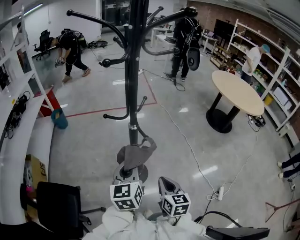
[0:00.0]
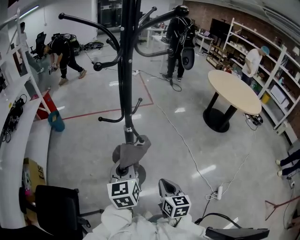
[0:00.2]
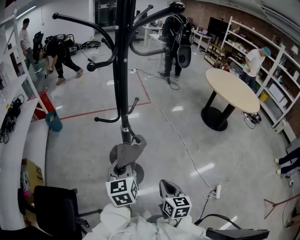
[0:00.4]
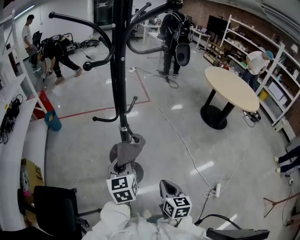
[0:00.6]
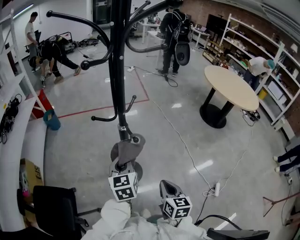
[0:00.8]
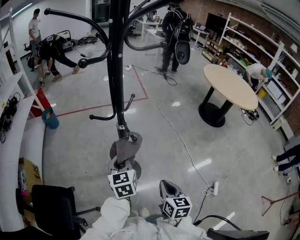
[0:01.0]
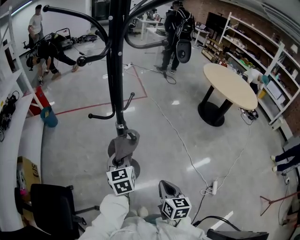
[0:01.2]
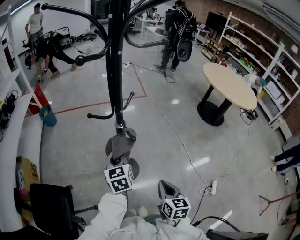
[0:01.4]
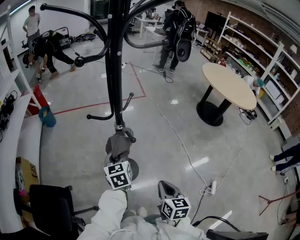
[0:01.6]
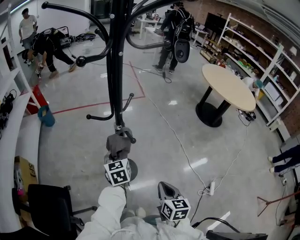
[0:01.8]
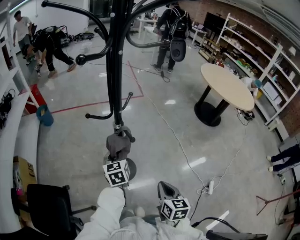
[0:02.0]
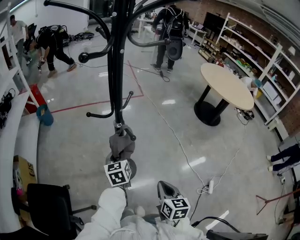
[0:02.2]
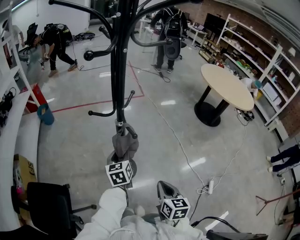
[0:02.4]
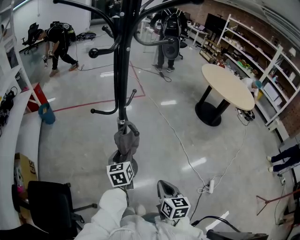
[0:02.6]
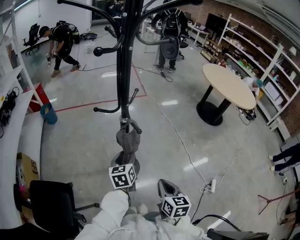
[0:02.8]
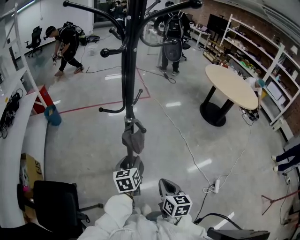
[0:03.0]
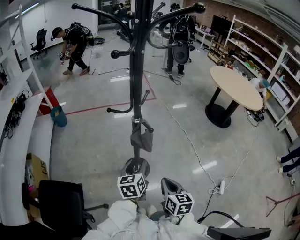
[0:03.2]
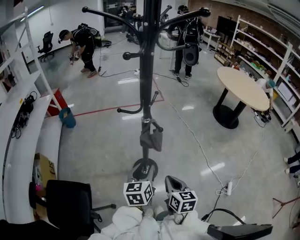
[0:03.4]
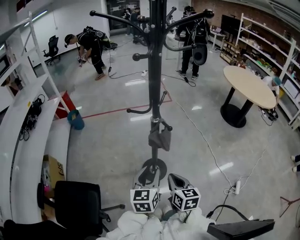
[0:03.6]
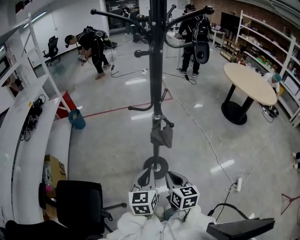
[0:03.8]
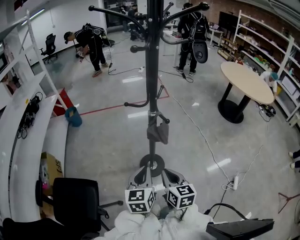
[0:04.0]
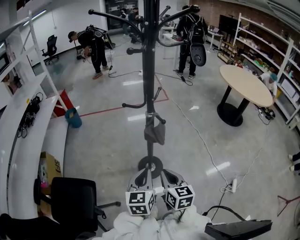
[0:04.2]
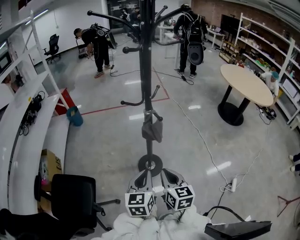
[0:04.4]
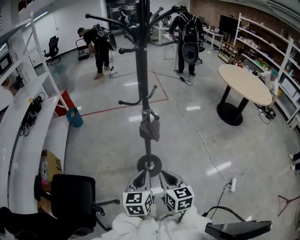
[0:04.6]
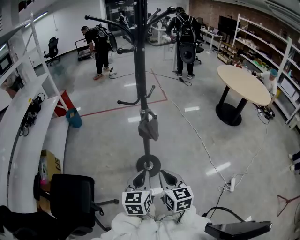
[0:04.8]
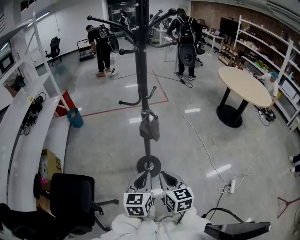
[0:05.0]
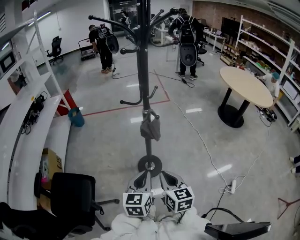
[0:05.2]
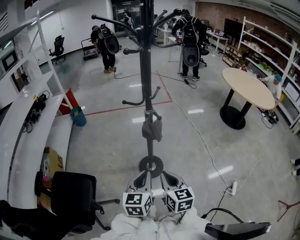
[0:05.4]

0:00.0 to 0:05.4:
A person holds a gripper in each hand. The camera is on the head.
0:00.0 to 0:01.4: The left gripper goes about 10 cm downward and forward; the right gripper ends up about 5 cm from where it was.
0:01.4 to 0:02.8: The left gripper travels downward by some 5 cm, and opens up.
0:02.8 to 0:04.0: The right gripper travels to the left by some 10 cm; the left gripper heads backward, upward and to the left, covering some 15 cm, and closes its fingers.
0:04.0 to 0:05.4: The left gripper heads backward, covering some 5 cm; the right gripper shifts by some 5 cm.

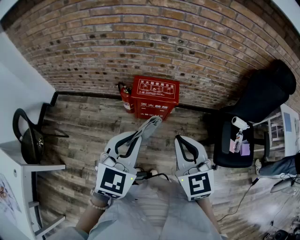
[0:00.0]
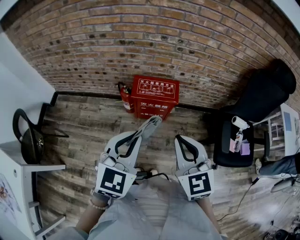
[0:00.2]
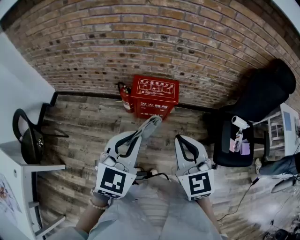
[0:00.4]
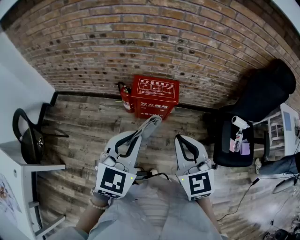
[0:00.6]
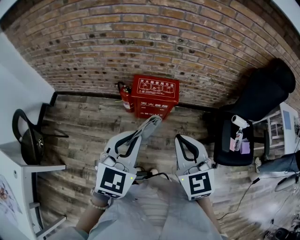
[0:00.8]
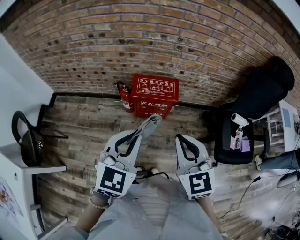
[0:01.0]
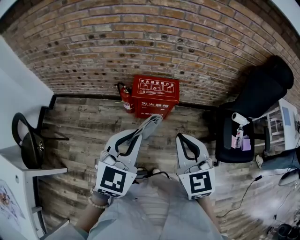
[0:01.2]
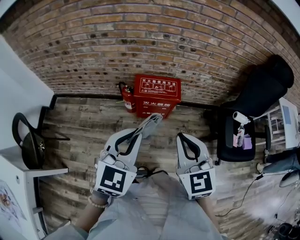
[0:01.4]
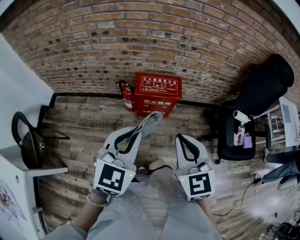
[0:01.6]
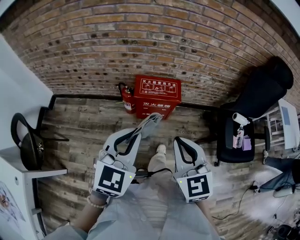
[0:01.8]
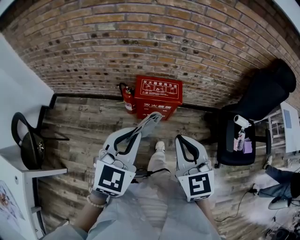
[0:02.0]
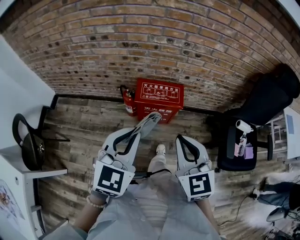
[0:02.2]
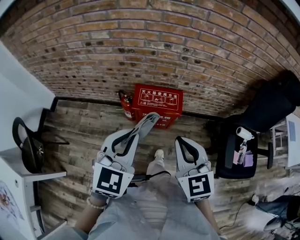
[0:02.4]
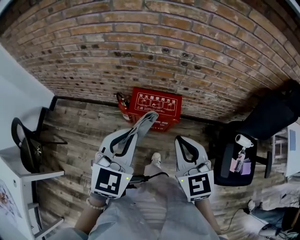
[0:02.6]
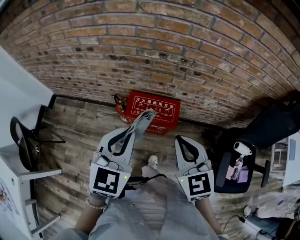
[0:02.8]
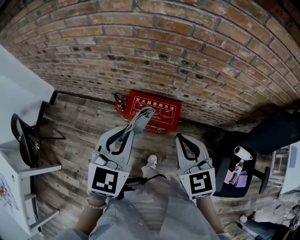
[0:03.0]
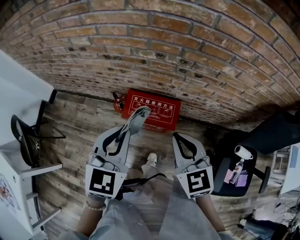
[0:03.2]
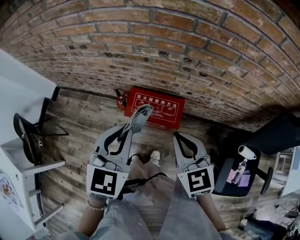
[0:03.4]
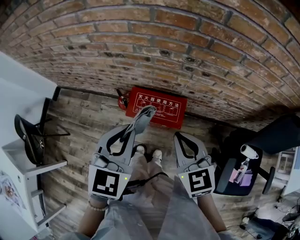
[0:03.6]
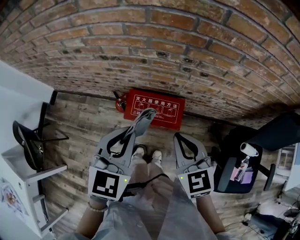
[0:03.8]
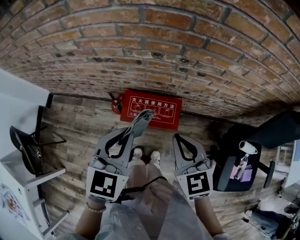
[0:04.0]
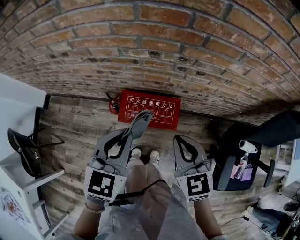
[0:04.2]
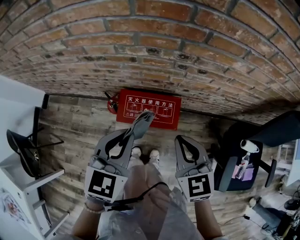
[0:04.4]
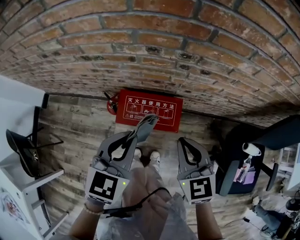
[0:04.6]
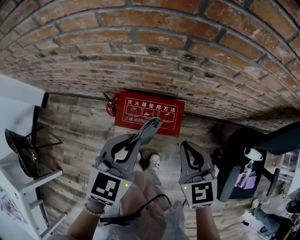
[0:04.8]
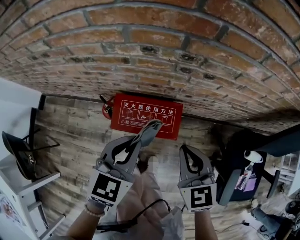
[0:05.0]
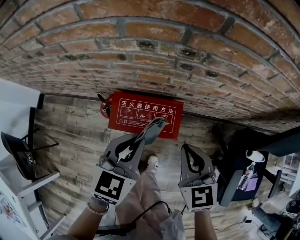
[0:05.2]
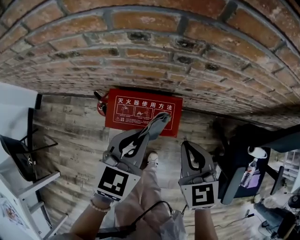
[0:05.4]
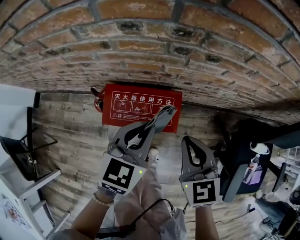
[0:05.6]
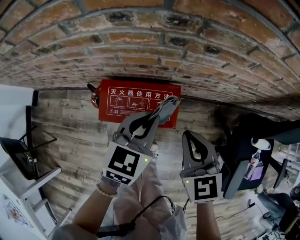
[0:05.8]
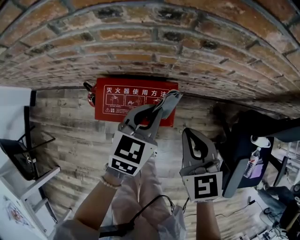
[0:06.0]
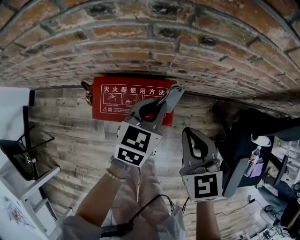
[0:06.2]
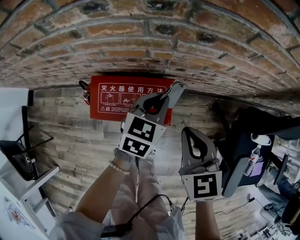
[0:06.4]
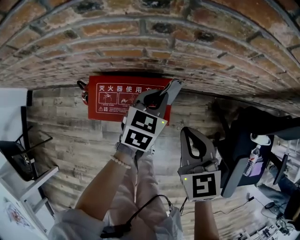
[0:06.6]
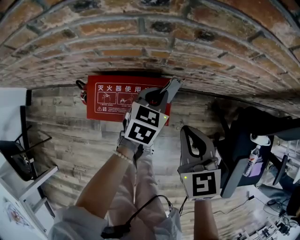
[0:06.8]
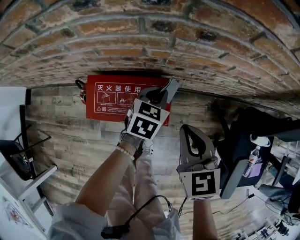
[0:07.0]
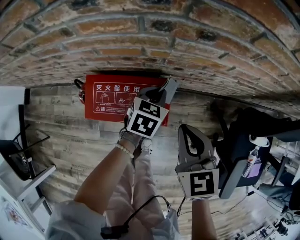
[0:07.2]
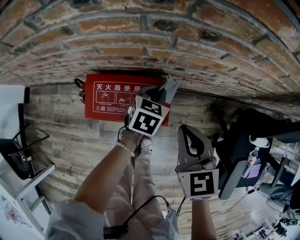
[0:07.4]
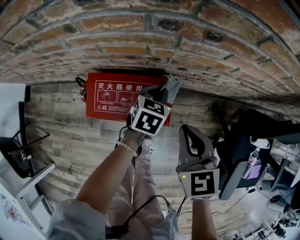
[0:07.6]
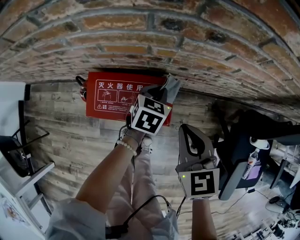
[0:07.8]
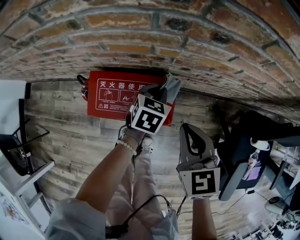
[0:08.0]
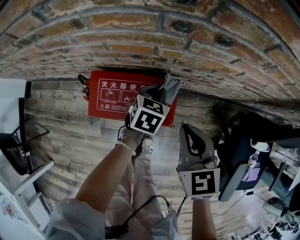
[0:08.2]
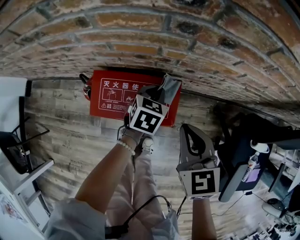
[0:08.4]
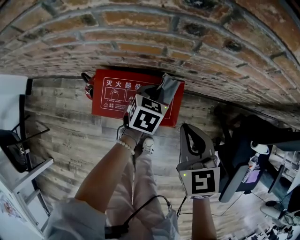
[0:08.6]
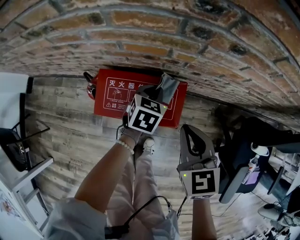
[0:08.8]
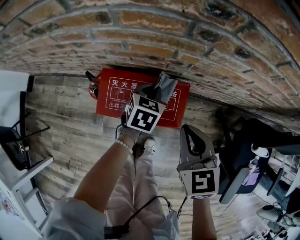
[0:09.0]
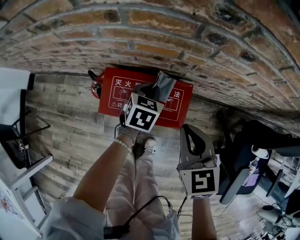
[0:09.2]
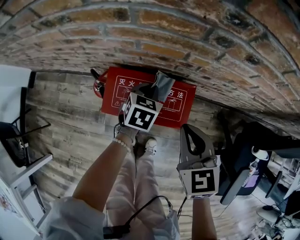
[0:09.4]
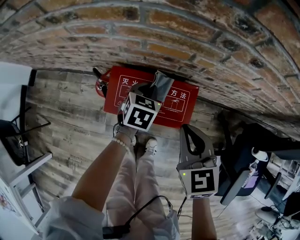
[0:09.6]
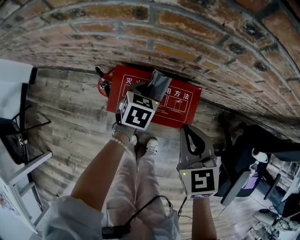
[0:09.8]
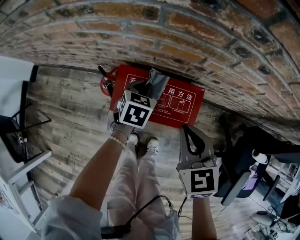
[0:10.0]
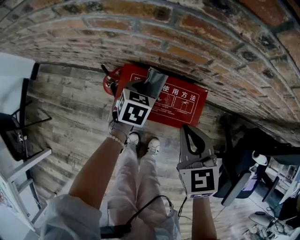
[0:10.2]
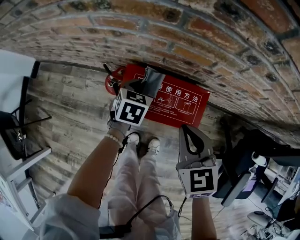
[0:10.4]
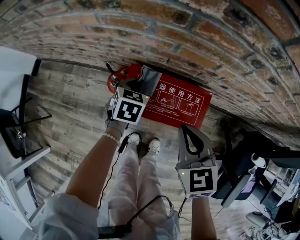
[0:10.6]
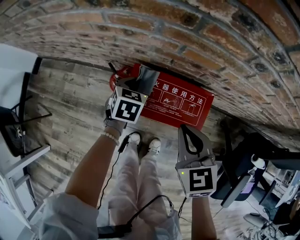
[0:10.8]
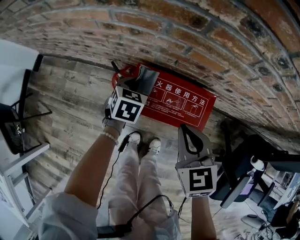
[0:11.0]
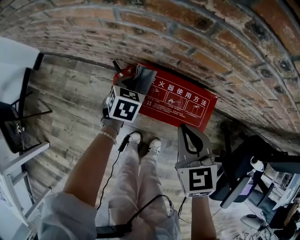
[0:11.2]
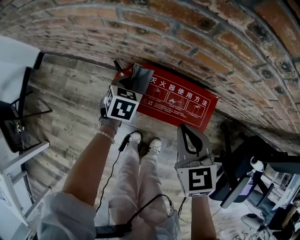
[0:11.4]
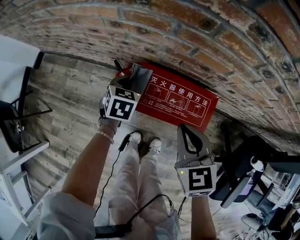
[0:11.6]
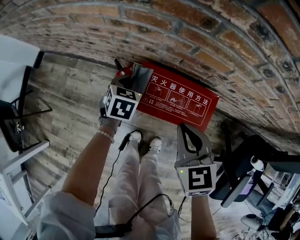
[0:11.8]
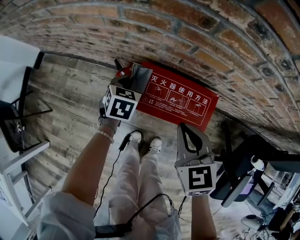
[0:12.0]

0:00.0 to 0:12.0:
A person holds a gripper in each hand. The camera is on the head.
0:00.0 to 0:01.6: The grippers stay close to where they were, moving slightly.
0:01.6 to 0:03.0: The two grippers go some 25 cm forward.
0:03.0 to 0:04.4: The grippers both shift downward and forward by roughly 10 cm.
0:04.4 to 0:06.0: The right gripper goes about 15 cm downward and to the right. The left gripper goes about 25 cm downward, to the right and forward.
0:06.0 to 0:07.6: The left gripper goes about 15 cm downward and forward.
0:07.6 to 0:09.0: The left gripper heads to the left, covering some 10 cm.
0:09.0 to 0:10.4: The left gripper heads to the left, covering approximately 15 cm. Meanwhile the right gripper goes roughly 10 cm to the left.
0:10.4 to 0:12.0: The left gripper heads to the left, covering some 10 cm. Meanwhile the right gripper shifts approximately 5 cm to the left.

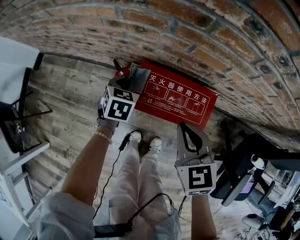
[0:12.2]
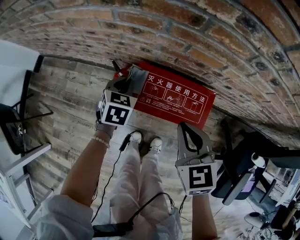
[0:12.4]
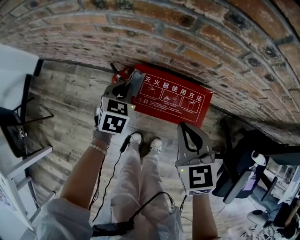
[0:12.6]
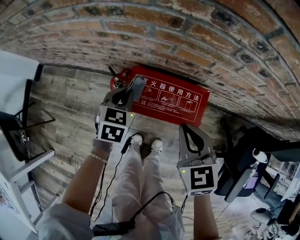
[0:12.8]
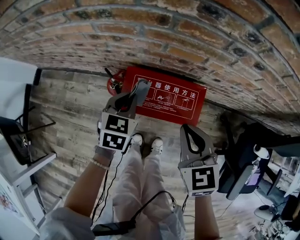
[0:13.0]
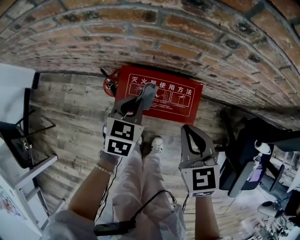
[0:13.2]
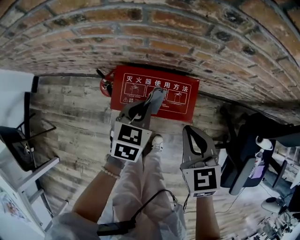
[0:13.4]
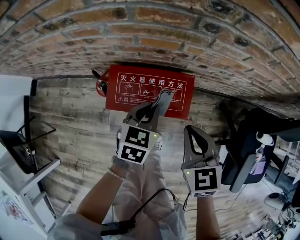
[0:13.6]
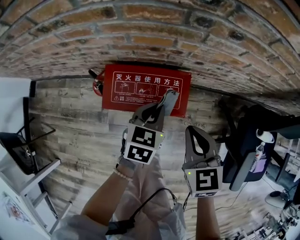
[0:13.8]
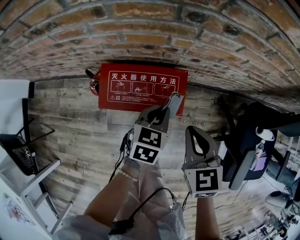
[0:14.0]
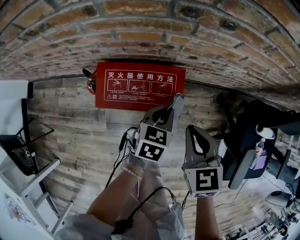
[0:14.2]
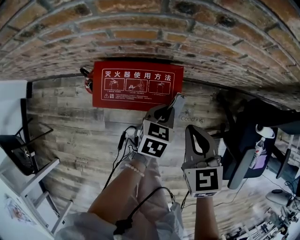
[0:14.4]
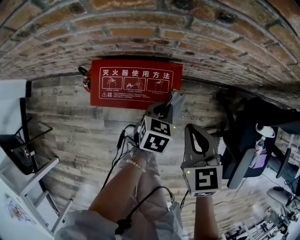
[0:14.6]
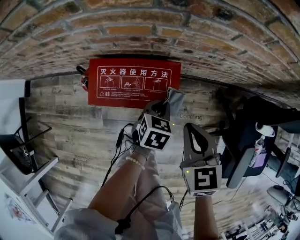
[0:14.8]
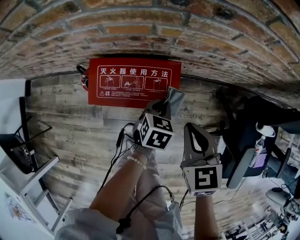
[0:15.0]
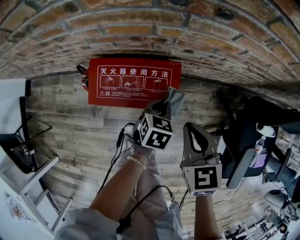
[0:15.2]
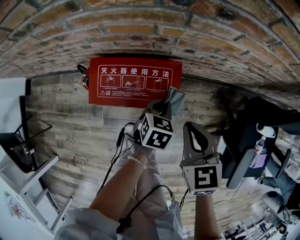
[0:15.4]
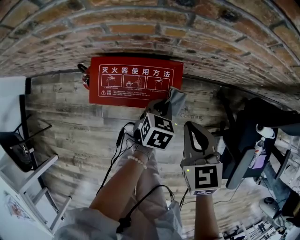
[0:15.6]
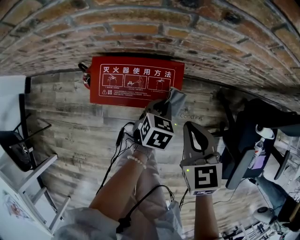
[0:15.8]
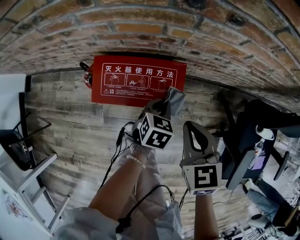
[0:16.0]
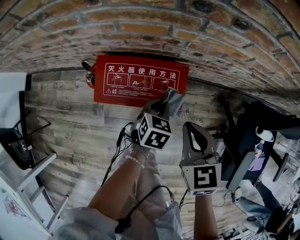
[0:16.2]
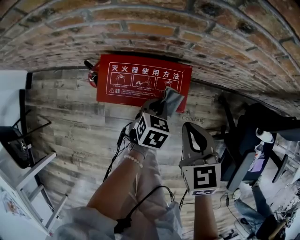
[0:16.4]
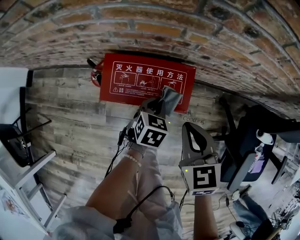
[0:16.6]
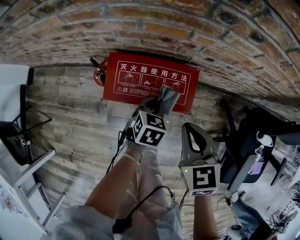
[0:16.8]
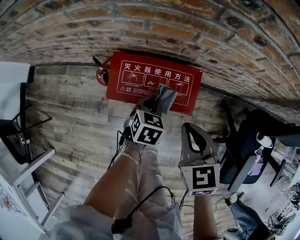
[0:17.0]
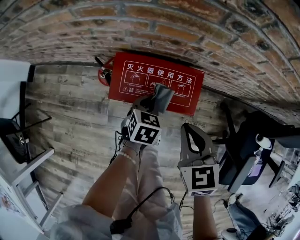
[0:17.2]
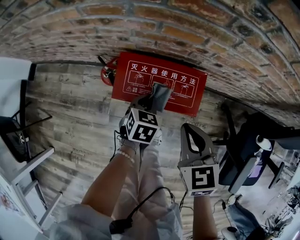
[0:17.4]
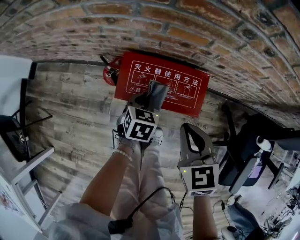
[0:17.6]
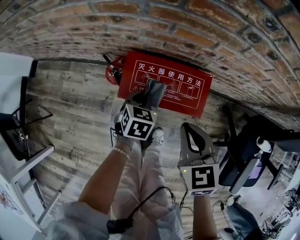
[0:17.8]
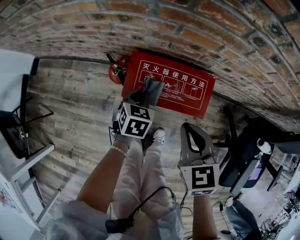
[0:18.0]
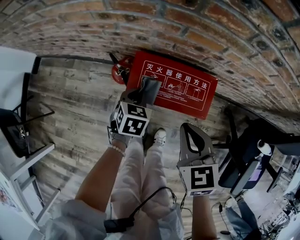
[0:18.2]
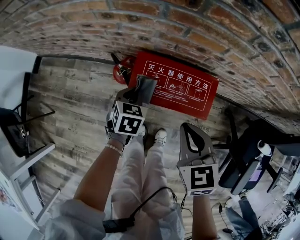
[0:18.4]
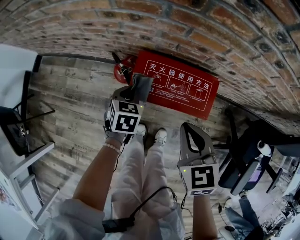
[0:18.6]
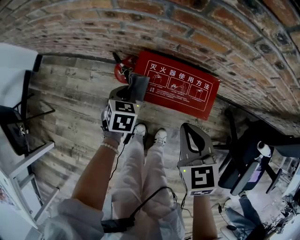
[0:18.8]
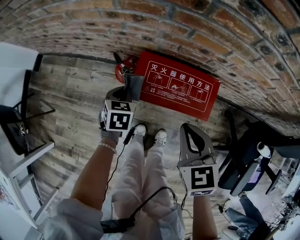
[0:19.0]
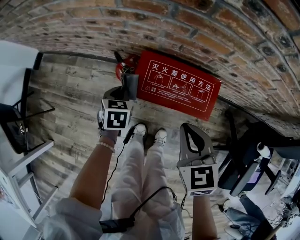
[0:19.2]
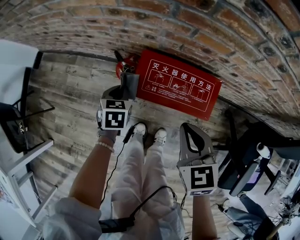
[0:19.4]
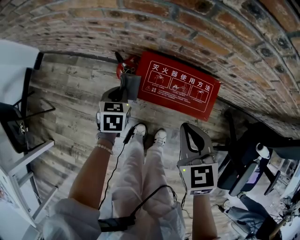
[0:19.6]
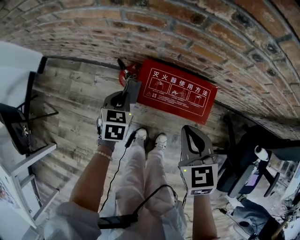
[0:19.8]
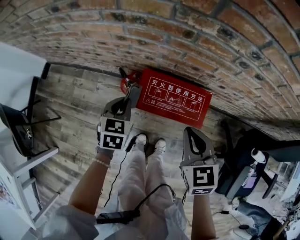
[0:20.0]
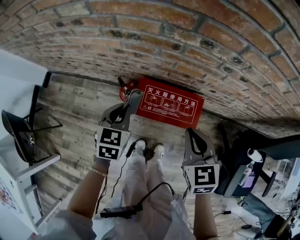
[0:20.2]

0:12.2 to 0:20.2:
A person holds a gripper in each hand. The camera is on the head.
0:12.2 to 0:13.8: The left gripper moves to the right, approximately 25 cm, and turns by approximately 20 degrees. Meanwhile the right gripper is displaced to the right by some 15 cm.
0:13.8 to 0:15.4: The left gripper shifts roughly 10 cm downward and to the right.
0:15.4 to 0:17.0: The two grippers go about 10 cm to the left.
0:17.0 to 0:18.6: The right gripper goes roughly 10 cm to the left. Meanwhile the left gripper travels to the left by about 20 cm.
0:18.6 to 0:20.2: The left gripper heads upward, covering approximately 20 cm; the right gripper goes some 10 cm upward.
